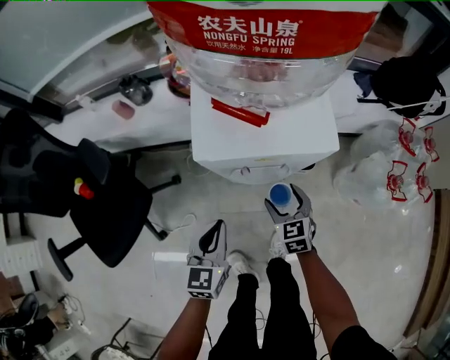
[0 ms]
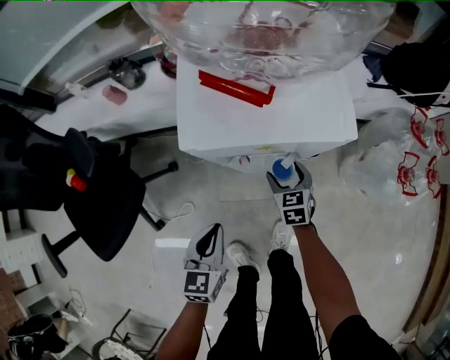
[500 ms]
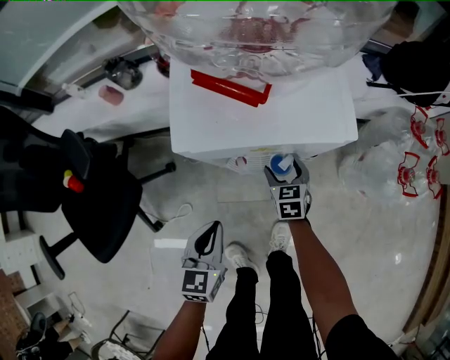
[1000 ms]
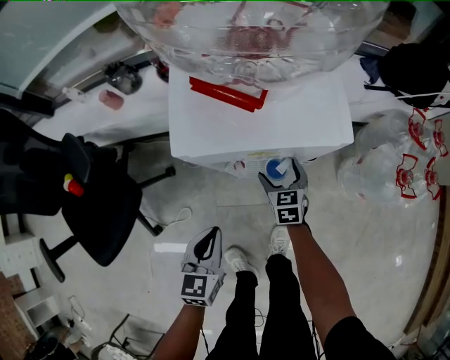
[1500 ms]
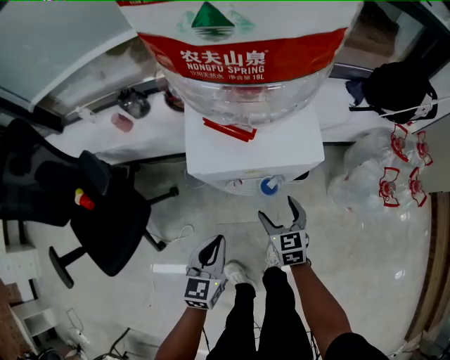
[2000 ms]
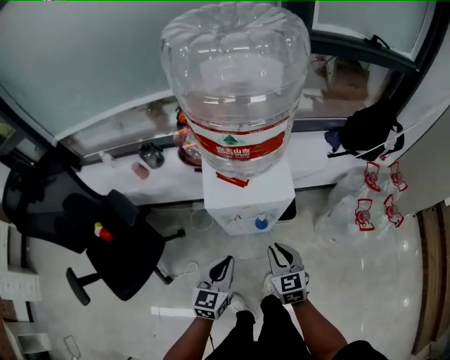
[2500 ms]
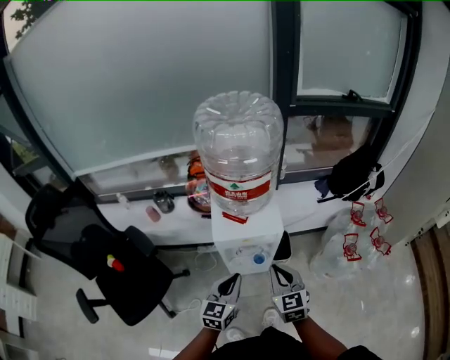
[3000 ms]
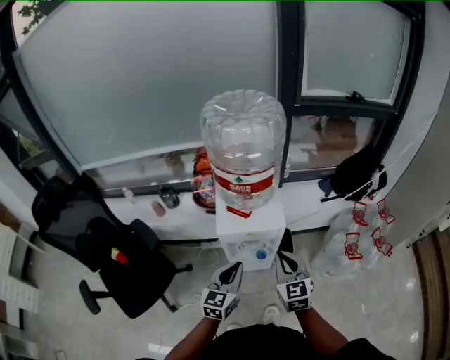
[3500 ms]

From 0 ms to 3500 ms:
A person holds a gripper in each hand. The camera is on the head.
From 0 ms to 2000 ms: The right gripper moves about 10 cm downward and comes back.
From 2000 ms to 3500 ms: Both grippers travel together upward, roughly 30 cm. The right gripper rotates approximately 20 degrees, and closes.

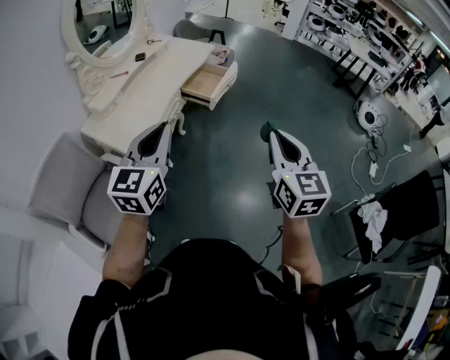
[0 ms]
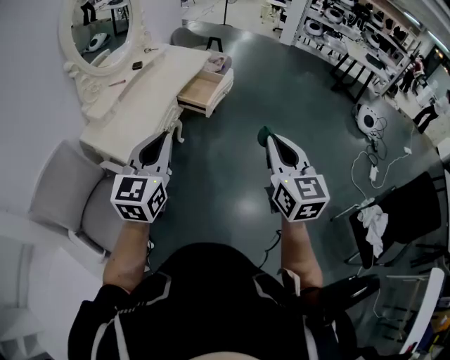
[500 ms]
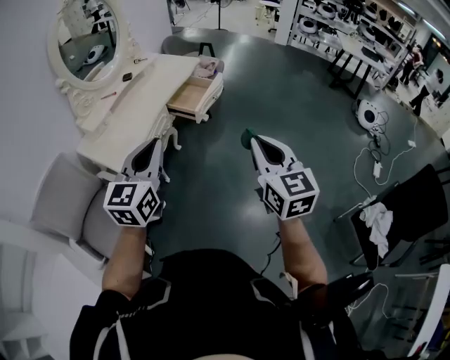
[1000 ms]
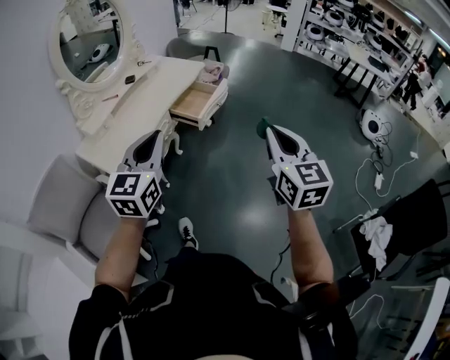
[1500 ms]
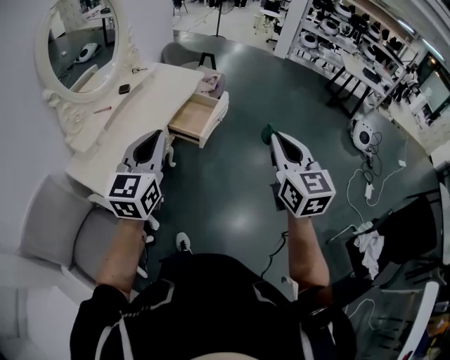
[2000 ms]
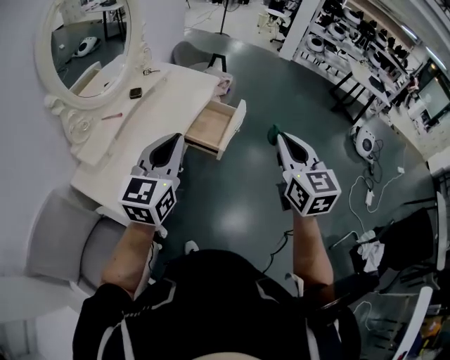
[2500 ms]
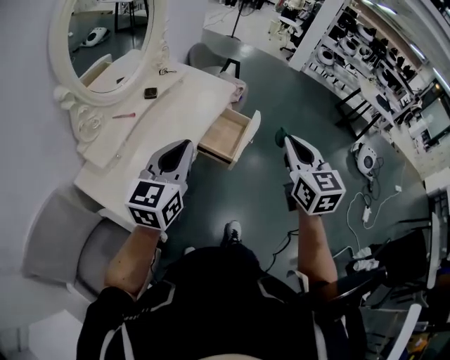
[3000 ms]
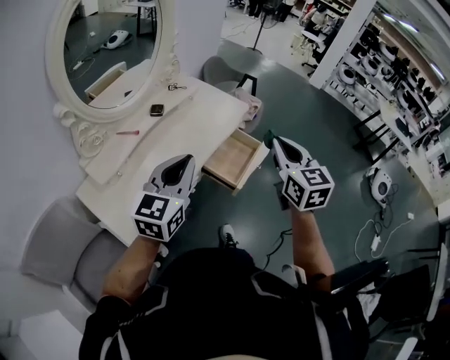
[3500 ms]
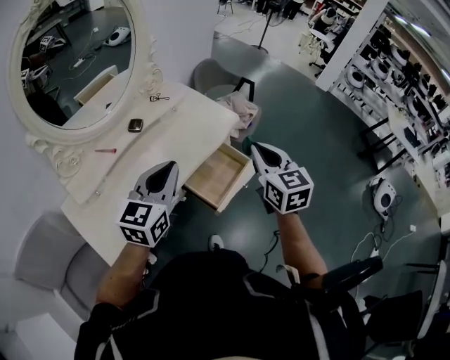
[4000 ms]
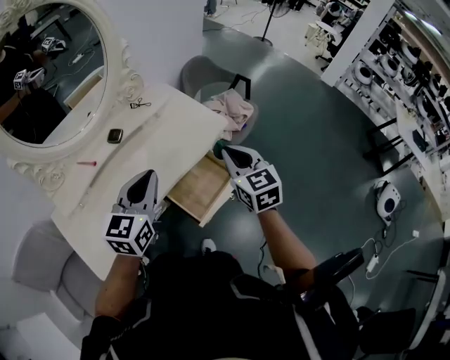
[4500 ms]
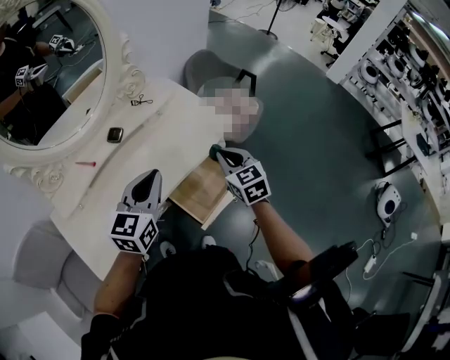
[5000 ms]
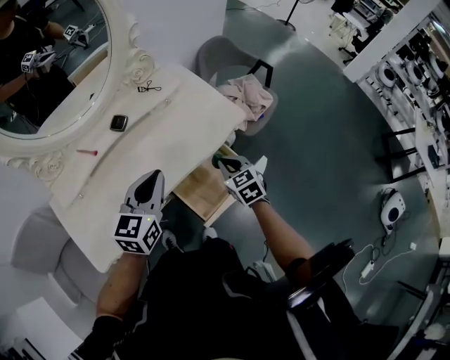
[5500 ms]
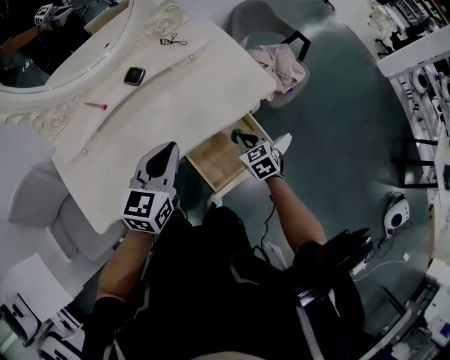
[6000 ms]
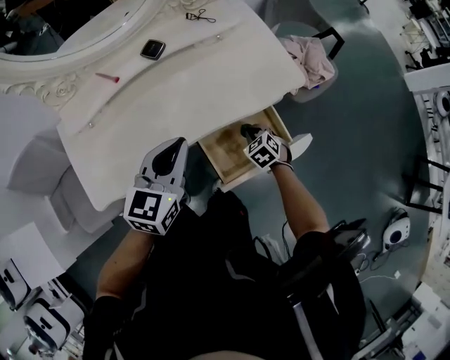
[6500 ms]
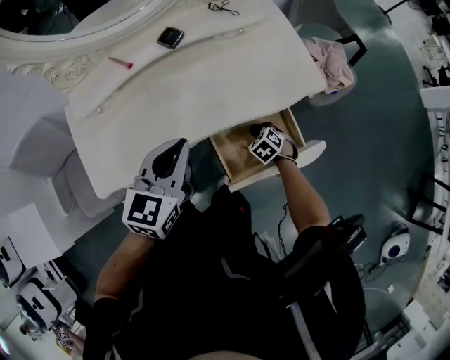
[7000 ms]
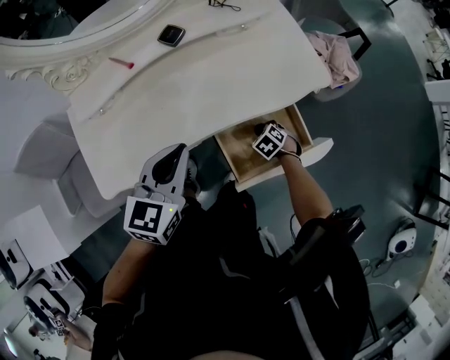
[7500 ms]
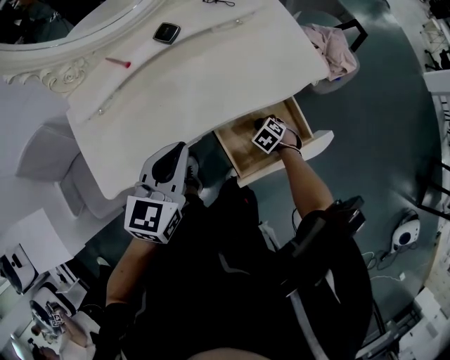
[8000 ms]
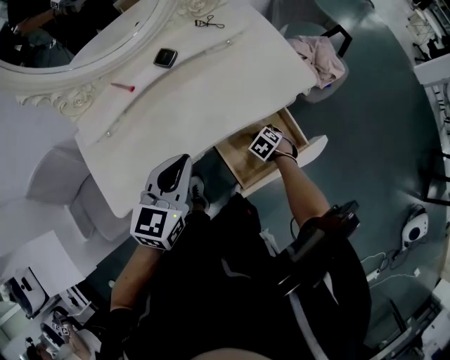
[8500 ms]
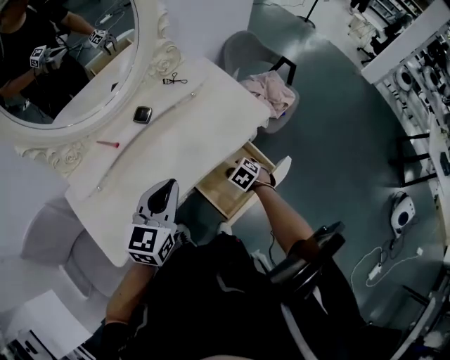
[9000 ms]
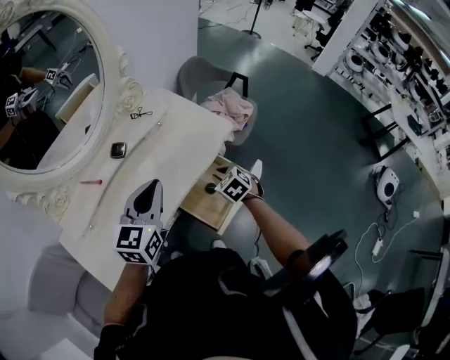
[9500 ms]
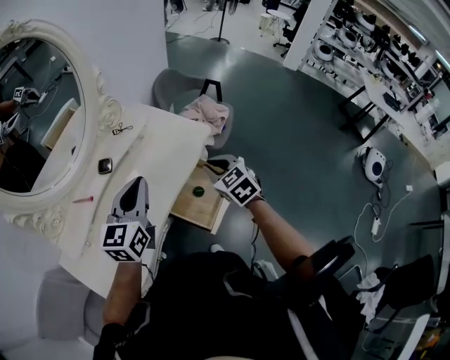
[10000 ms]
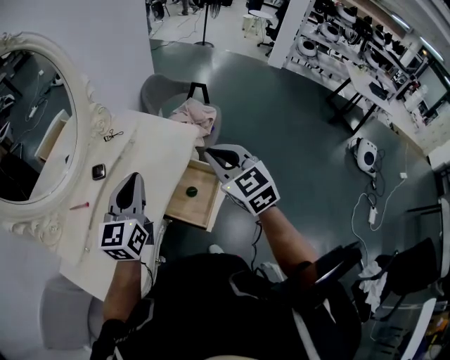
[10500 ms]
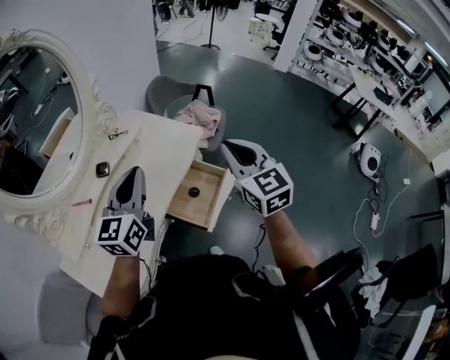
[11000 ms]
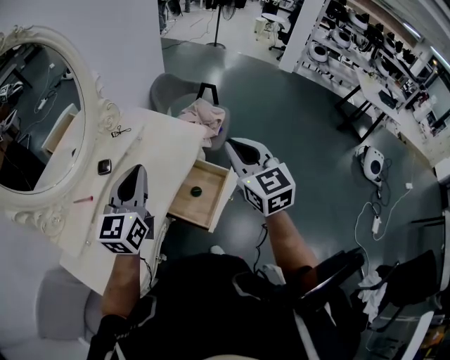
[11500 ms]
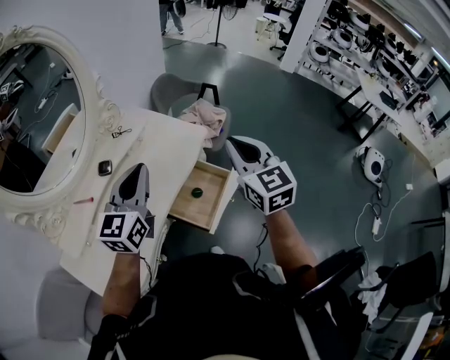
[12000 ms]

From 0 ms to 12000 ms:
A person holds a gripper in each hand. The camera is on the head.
From 0 ms to 2000 ms: The grippers both shift forward by about 20 cm.
From 2000 ms to 4000 ms: The grippers both shift forward by approximately 40 cm. The right gripper rotates about 20 degrees.
From 4000 ms to 6000 ms: The right gripper heads downward and forward, covering some 35 cm, and tilts its fingers approximately 30 degrees downward; the left gripper heads downward and forward, covering about 15 cm, and turns by approximately 20 degrees.
From 6000 ms to 8000 ms: The right gripper goes about 20 cm downward, and swivels about 40 degrees, while the left gripper moves roughly 5 cm.
From 8000 ms to 10000 ms: The left gripper travels upward by approximately 15 cm, and rotates approximately 30 degrees. The right gripper is displaced upward by roughly 40 cm, angles its fingers upward, by approximately 40 degrees, and opens, then closes again.
From 10000 ms to 12000 ms: The right gripper heads upward, covering about 20 cm, and turns by roughly 30 degrees. The left gripper shifts by about 5 cm.

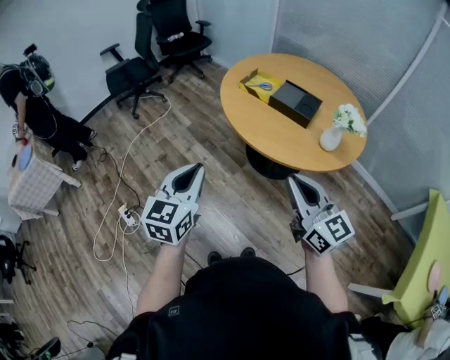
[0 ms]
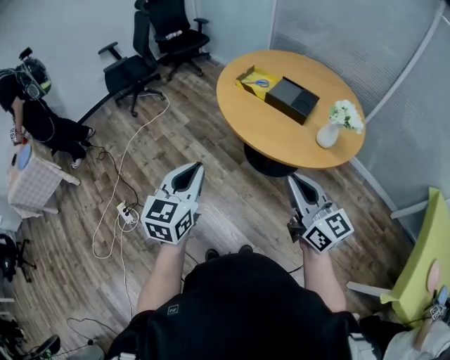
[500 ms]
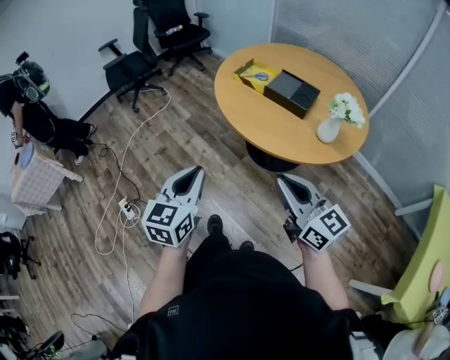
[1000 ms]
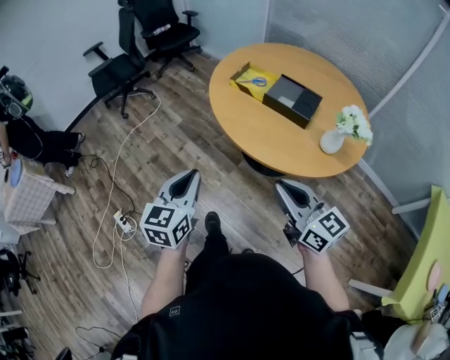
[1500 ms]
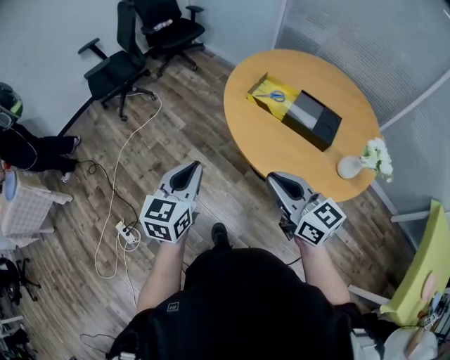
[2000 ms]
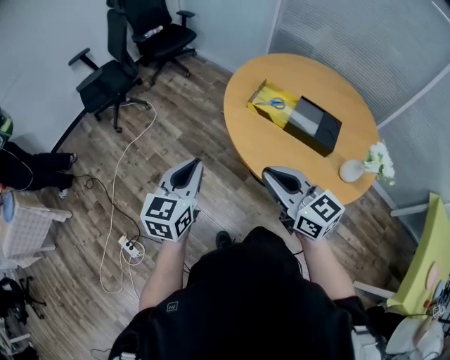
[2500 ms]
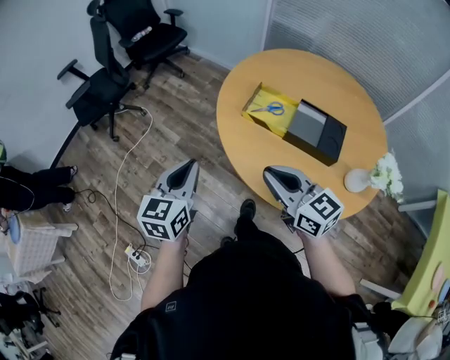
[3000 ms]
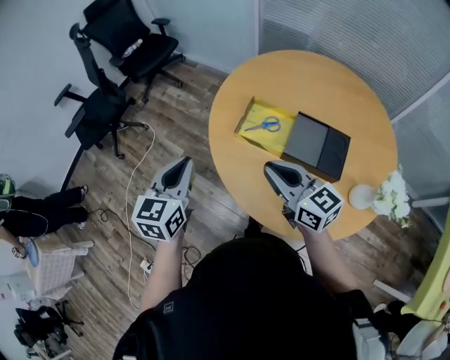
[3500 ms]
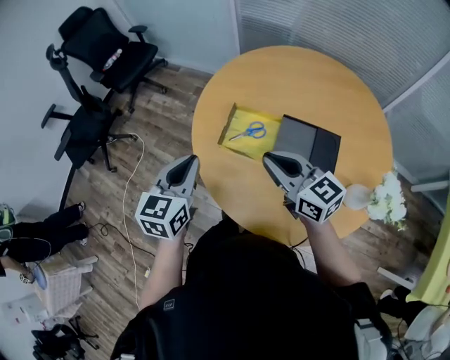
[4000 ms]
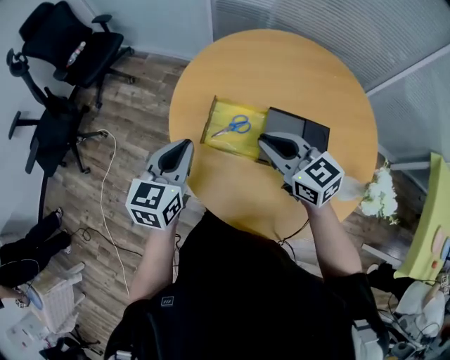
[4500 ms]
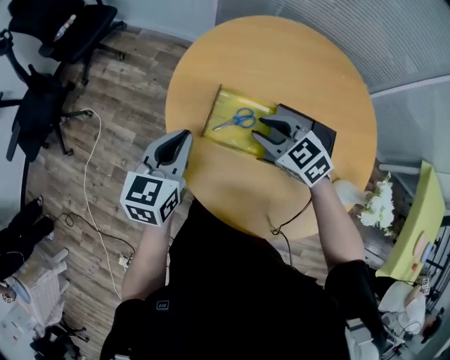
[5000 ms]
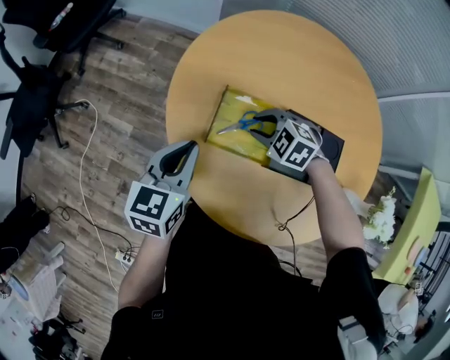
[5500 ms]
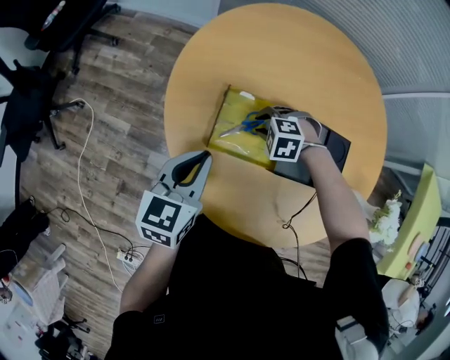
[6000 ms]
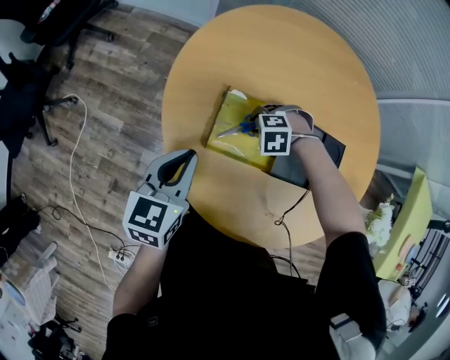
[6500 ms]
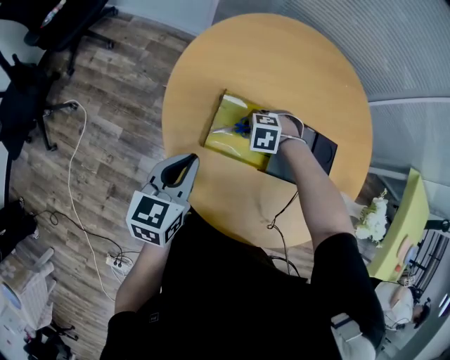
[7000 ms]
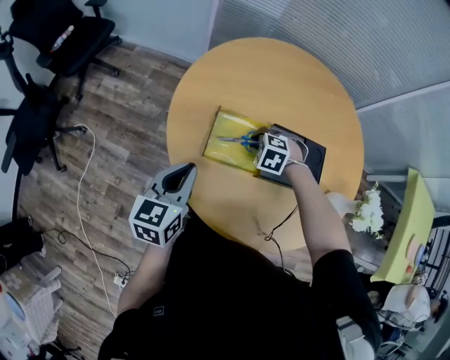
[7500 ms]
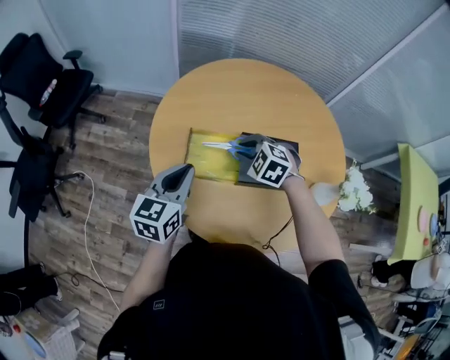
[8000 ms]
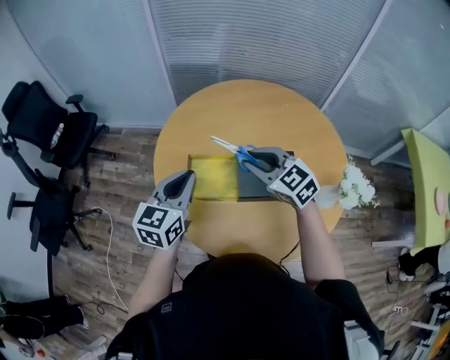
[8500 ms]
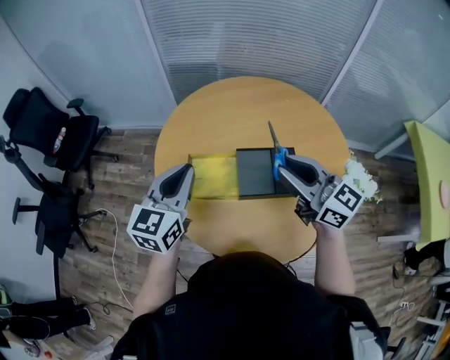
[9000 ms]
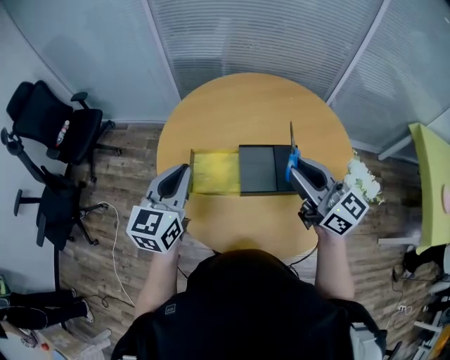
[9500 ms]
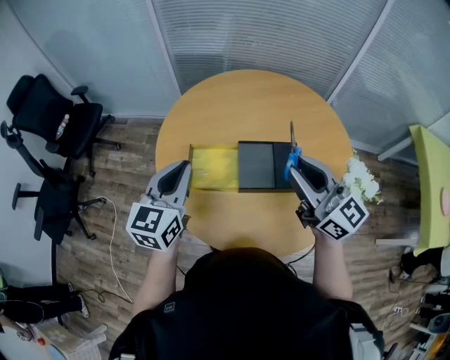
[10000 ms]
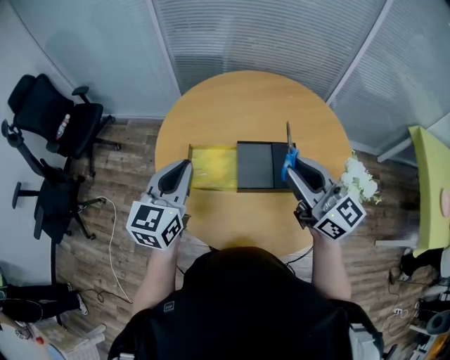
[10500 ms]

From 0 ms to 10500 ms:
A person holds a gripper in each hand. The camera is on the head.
From 0 ms to 2000 ms: The grippers both shift forward by roughly 25 cm.
From 2000 ms to 4000 ms: Both grippers travel together forward and to the right, roughly 35 cm.
From 4000 ms to 6500 ms: The left gripper heads downward, covering approximately 15 cm. Meanwhile the right gripper moves downward, about 30 cm, and tilts its fingers about 80 degrees downward.
From 6500 ms to 8500 ms: The right gripper heads upward, covering some 30 cm, and points its fingers some 60 degrees further upward. The left gripper is displaced upward by approximately 15 cm, and rotates some 20 degrees.
From 8500 ms to 10500 ms: The right gripper heads upward, backward and to the right, covering roughly 15 cm, and points its fingers approximately 30 degrees further upward.
